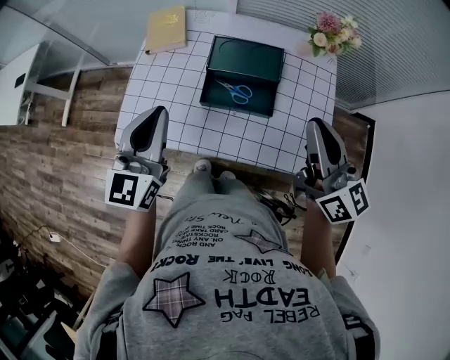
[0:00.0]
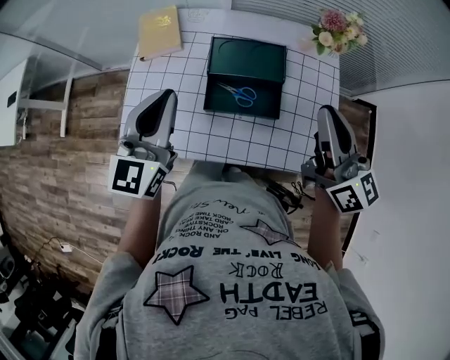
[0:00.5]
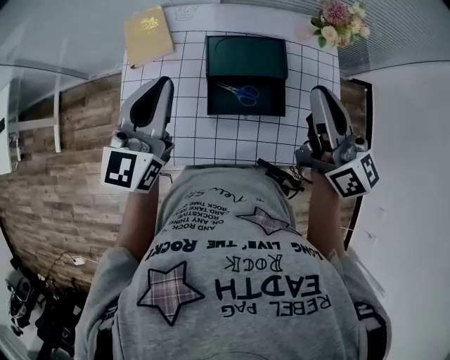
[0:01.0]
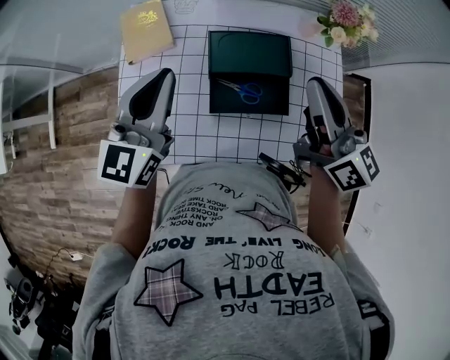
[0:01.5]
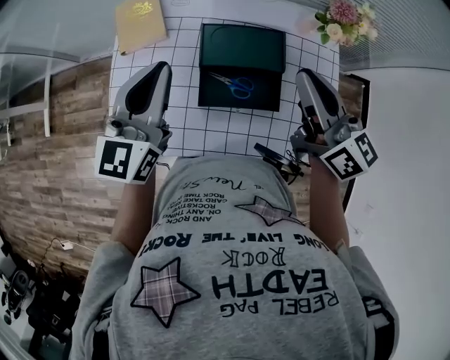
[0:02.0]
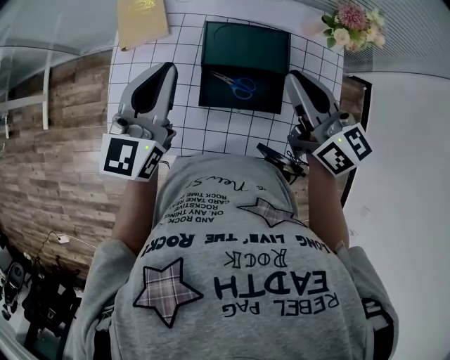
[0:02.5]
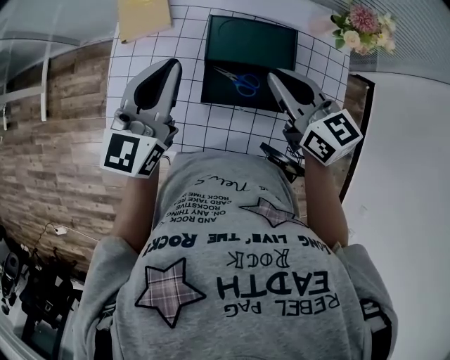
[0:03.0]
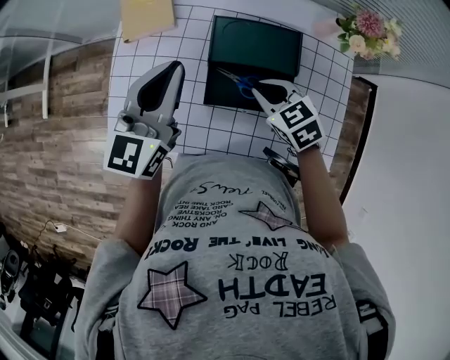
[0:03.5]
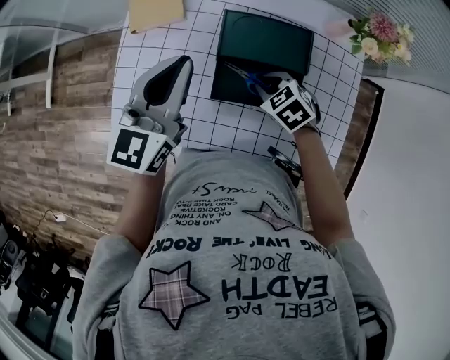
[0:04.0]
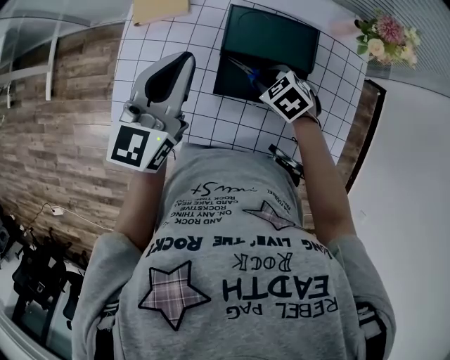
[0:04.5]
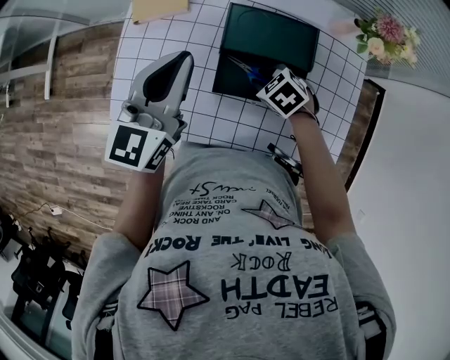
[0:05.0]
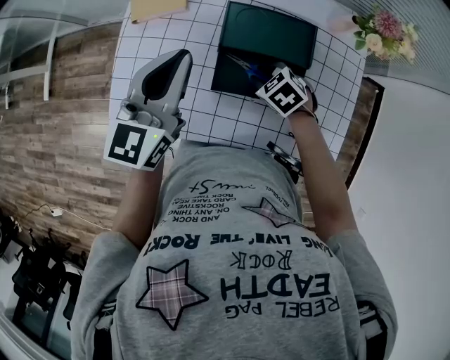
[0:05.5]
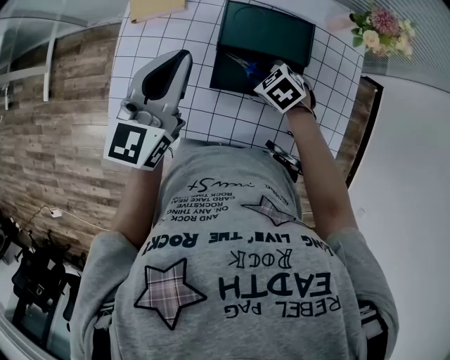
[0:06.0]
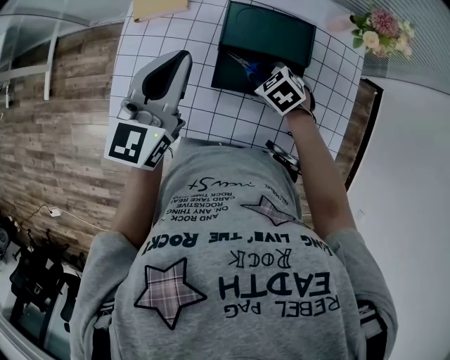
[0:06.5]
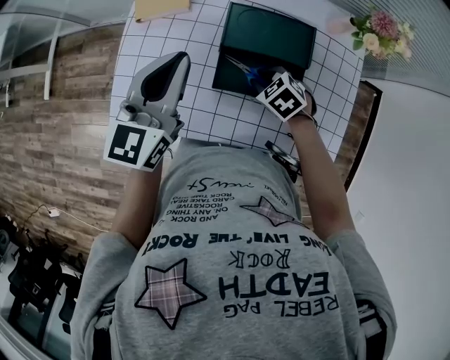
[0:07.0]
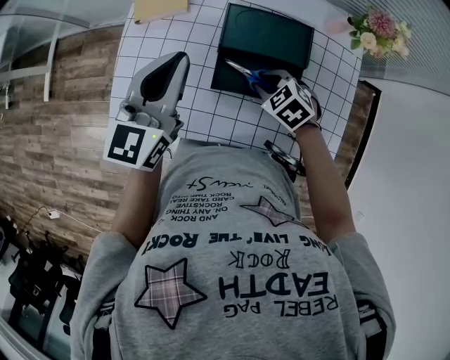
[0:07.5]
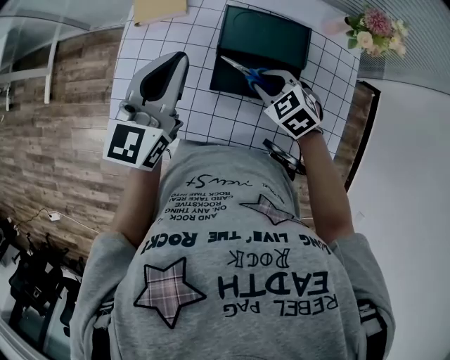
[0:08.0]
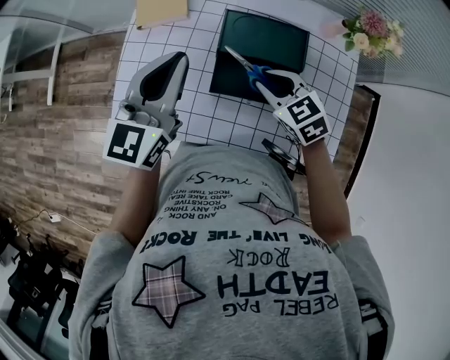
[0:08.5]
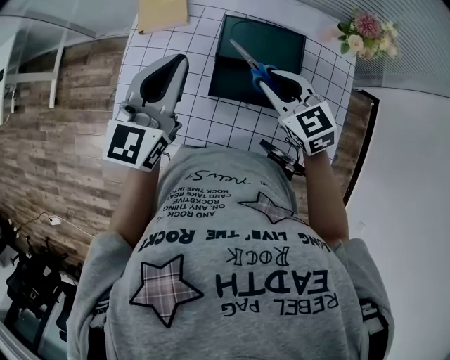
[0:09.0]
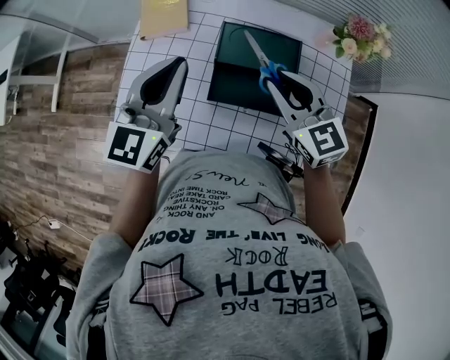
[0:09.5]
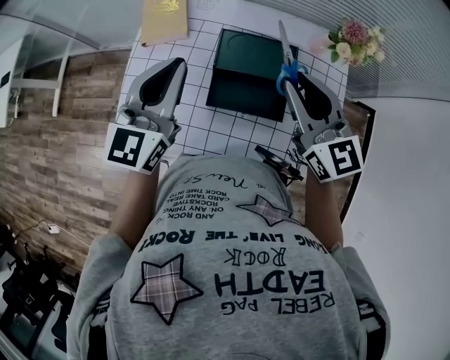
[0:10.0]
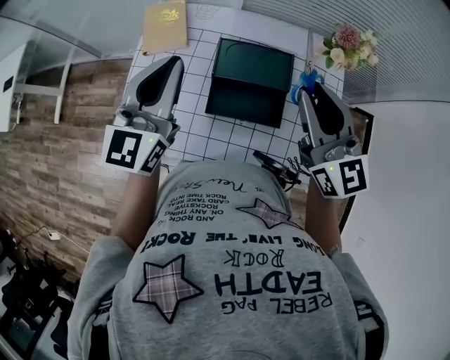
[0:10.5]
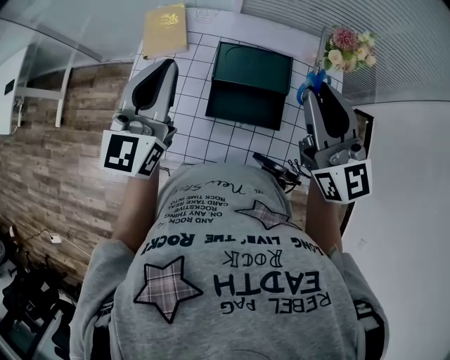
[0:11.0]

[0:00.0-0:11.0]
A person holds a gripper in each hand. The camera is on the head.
0:00.0 to 0:02.0: The right gripper shifts some 15 cm forward and to the left; the left gripper is displaced forward by about 15 cm.
0:02.0 to 0:03.5: The right gripper is displaced downward by some 20 cm, and angles its fingers downward, by some 50 degrees.
0:03.5 to 0:05.5: The right gripper travels downward by some 10 cm, swivels about 20 degrees, and opens its fingers.
0:05.5 to 0:07.5: The grippers make only small movements.
0:07.5 to 0:09.0: The right gripper goes about 15 cm upward, and swivels about 30 degrees.
0:09.0 to 0:11.0: The left gripper goes approximately 5 cm upward. The right gripper heads upward, covering roughly 20 cm, and angles its fingers upward, by some 40 degrees.

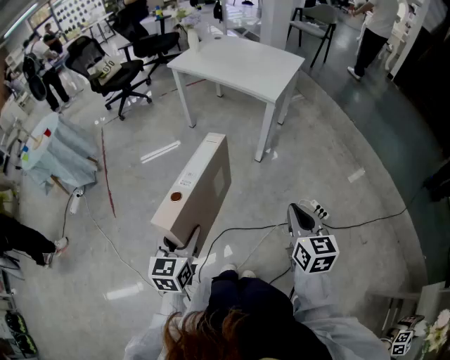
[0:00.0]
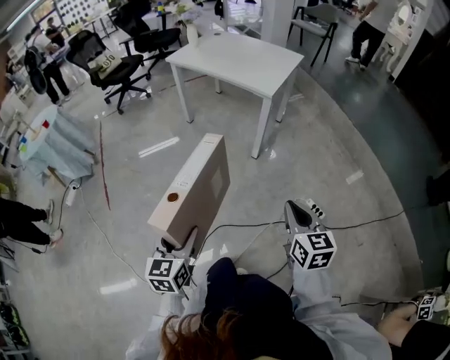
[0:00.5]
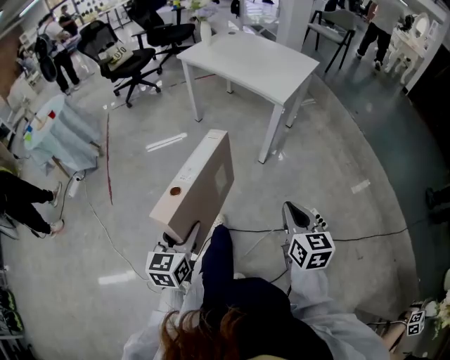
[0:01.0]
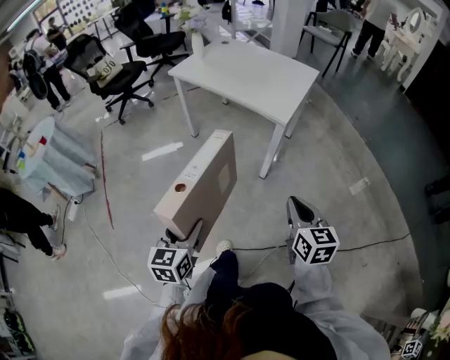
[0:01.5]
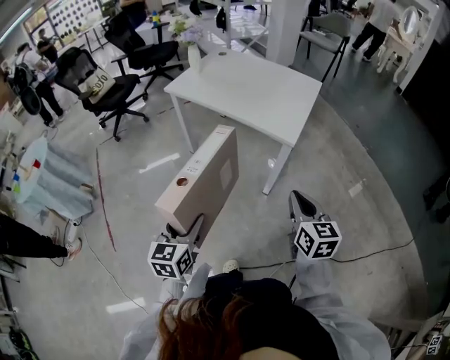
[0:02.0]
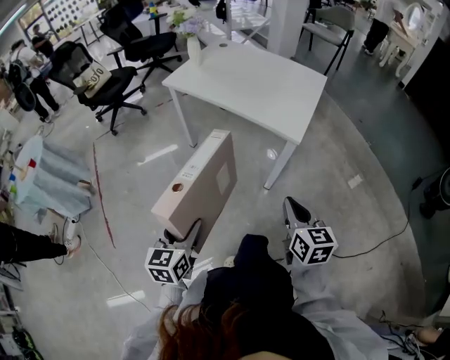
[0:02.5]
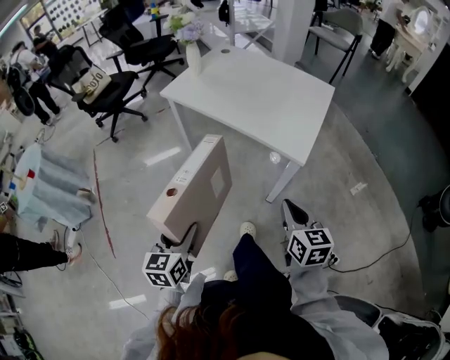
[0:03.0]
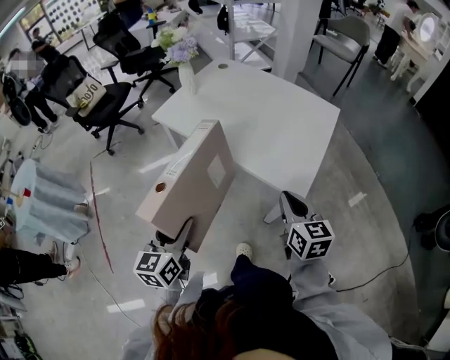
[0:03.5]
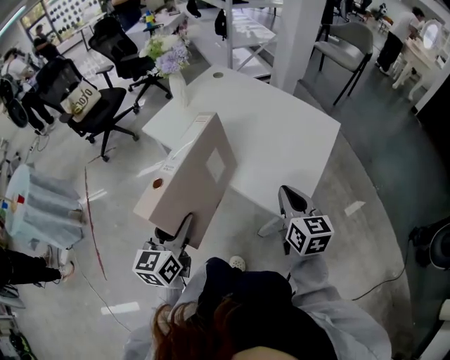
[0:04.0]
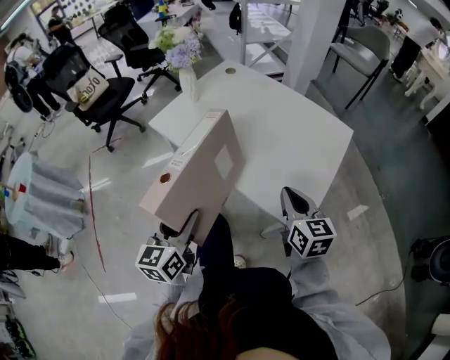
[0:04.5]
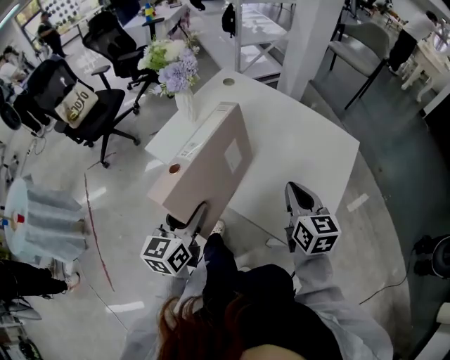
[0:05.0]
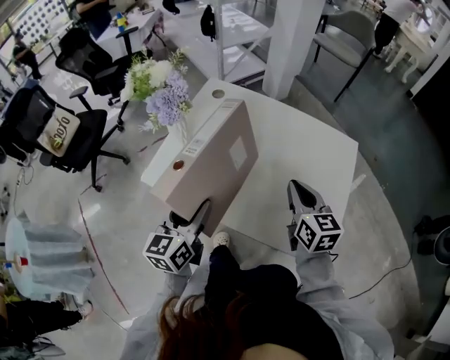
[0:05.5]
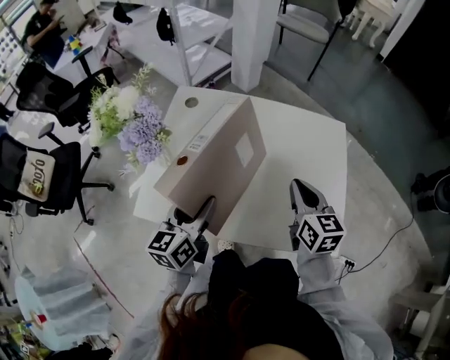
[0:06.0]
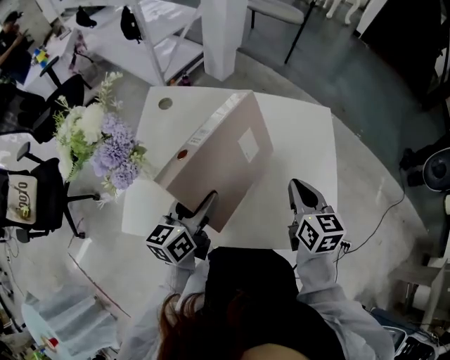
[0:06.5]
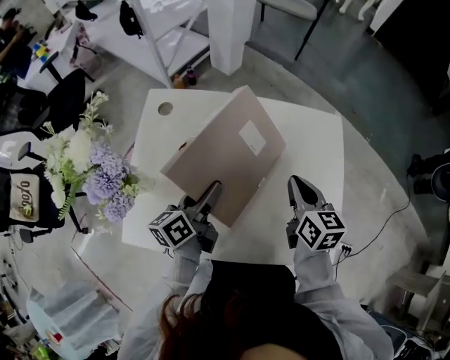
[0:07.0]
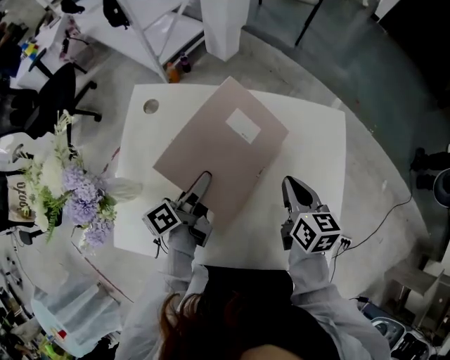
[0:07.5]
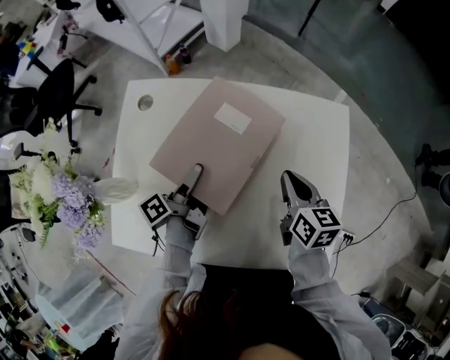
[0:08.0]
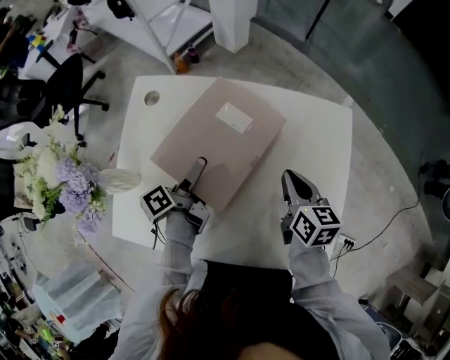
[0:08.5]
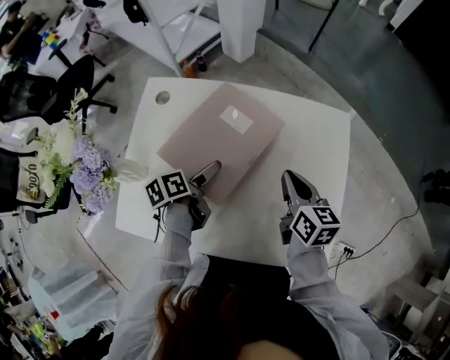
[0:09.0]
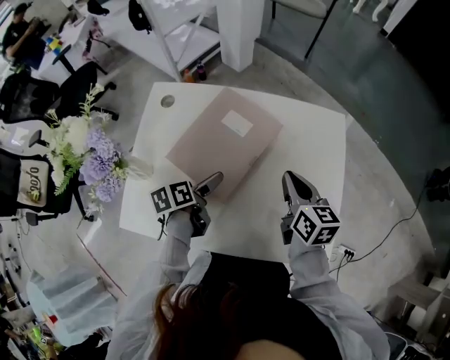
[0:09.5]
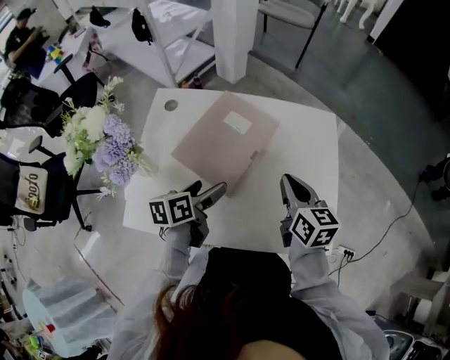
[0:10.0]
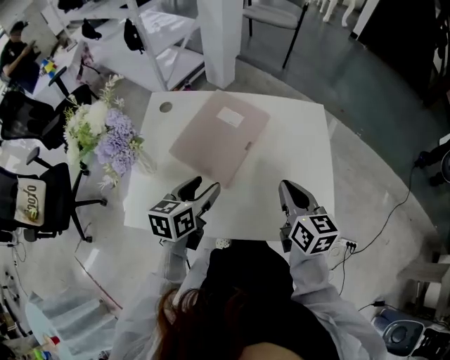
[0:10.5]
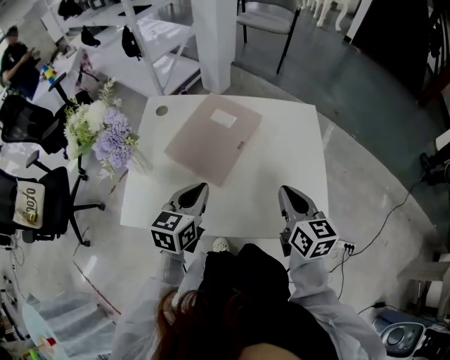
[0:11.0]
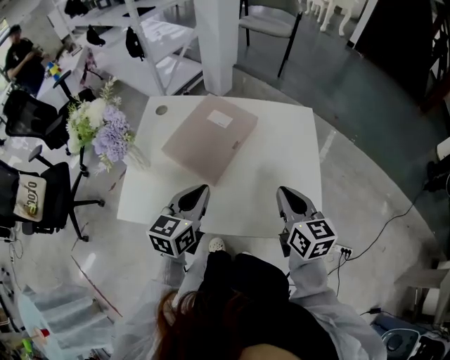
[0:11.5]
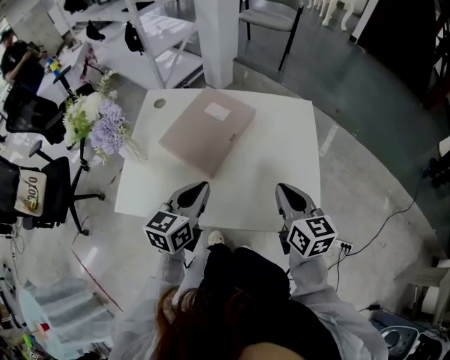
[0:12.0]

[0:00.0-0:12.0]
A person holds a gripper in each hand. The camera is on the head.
0:00.0 to 0:02.0: Both grippers move forward, some 35 cm.
0:02.0 to 0:04.0: The two grippers go some 40 cm forward.
0:04.0 to 0:06.0: The right gripper shifts by some 30 cm, and changes its angle by about 20 degrees, while the left gripper shifts by approximately 40 cm, and swivels some 30 degrees.
0:06.0 to 0:08.0: Both grippers travel together forward and downward, roughly 20 cm. The left gripper twists roughly 60 degrees counterclockwise, seen from behind.
0:08.0 to 0:10.0: Both grippers move backward and upward, some 15 cm. The left gripper rolls clockwise, seen from behind, by roughly 40 degrees.
0:10.0 to 0:12.0: The left gripper shifts approximately 15 cm backward, upward and to the right, turns by some 30 degrees, and closes its fingers. The right gripper is displaced backward and to the right by approximately 15 cm.

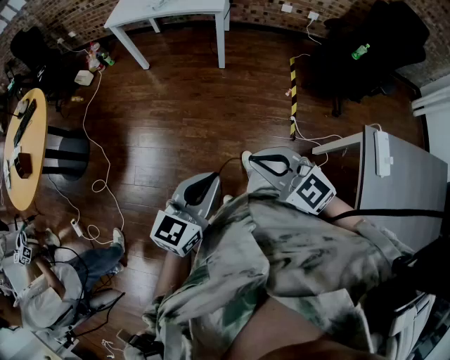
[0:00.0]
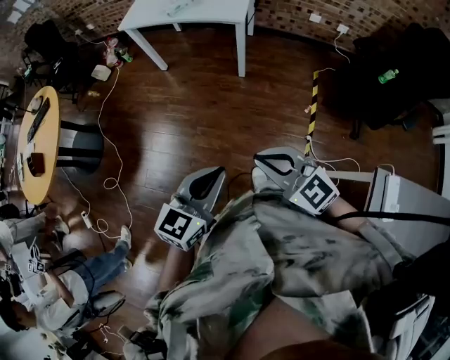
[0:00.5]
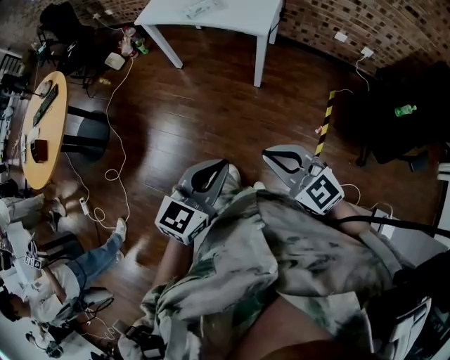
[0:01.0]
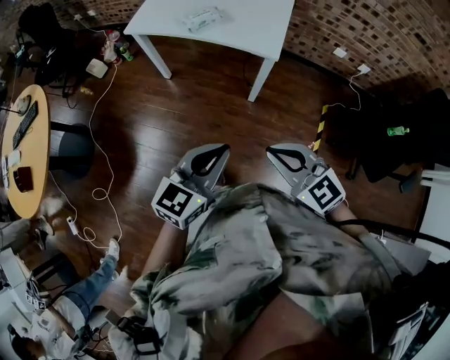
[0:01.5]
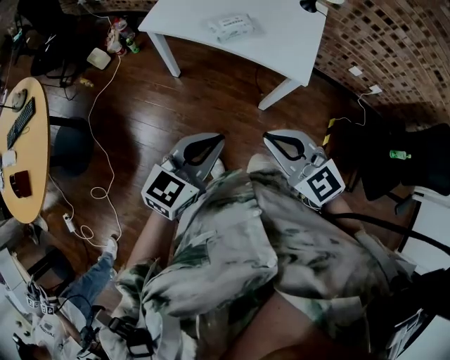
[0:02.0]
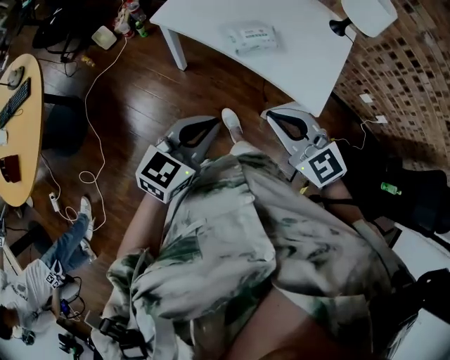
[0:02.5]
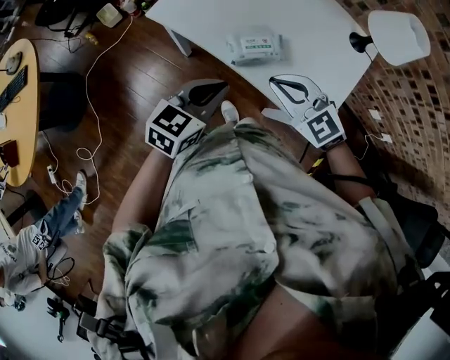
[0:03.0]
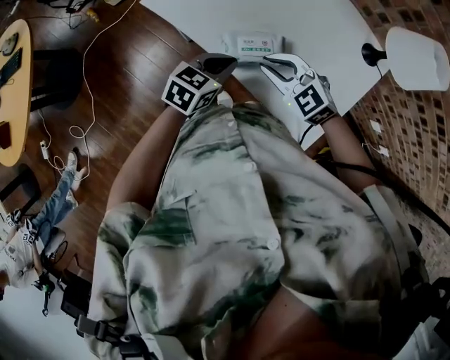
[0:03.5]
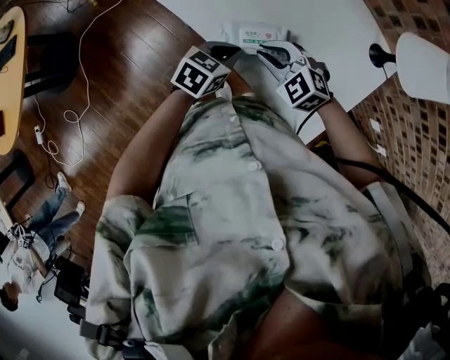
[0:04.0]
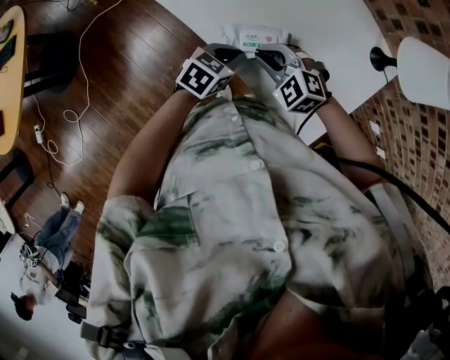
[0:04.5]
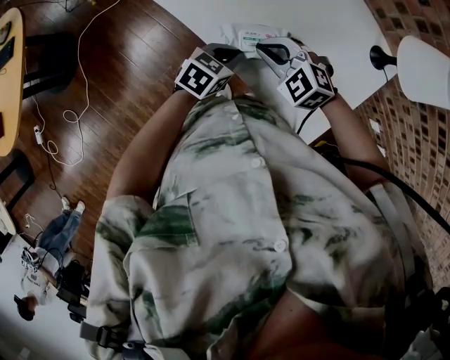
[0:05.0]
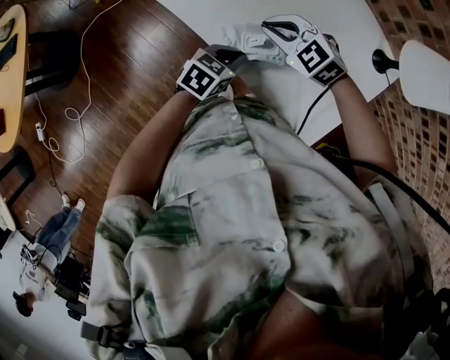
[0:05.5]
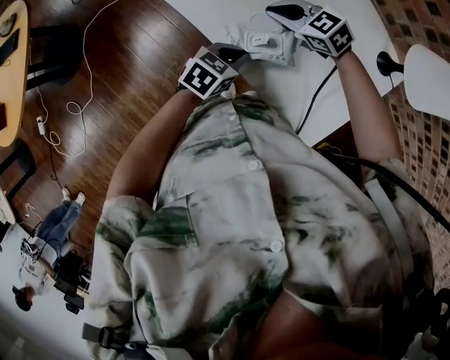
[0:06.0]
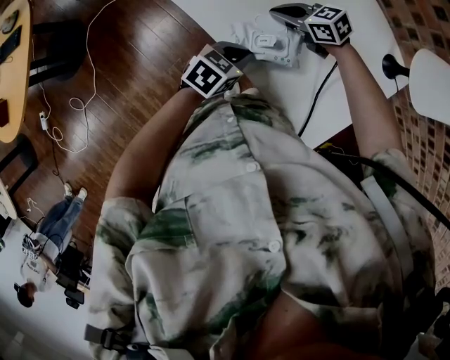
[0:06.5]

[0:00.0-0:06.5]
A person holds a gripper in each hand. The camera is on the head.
0:00.0 to 0:02.0: Both grippers are carried forward, some 60 cm.
0:02.0 to 0:04.5: The pair of grippers is taken forward, roughly 40 cm. The two grippers go approximately 25 cm downward. The right gripper changes its angle by about 50 degrees. The left gripper turns by some 30 degrees.
0:04.5 to 0:06.5: The right gripper moves some 15 cm, and rotates around the line of its fingers by approximately 40 degrees, clockwise from behind.
